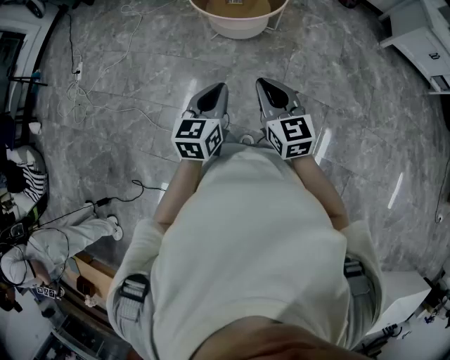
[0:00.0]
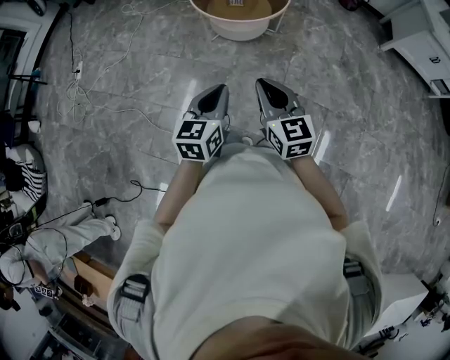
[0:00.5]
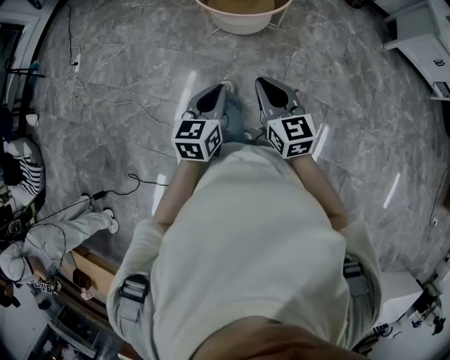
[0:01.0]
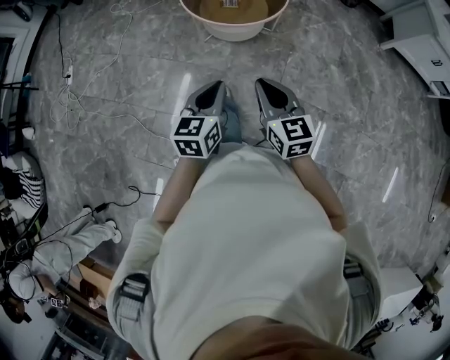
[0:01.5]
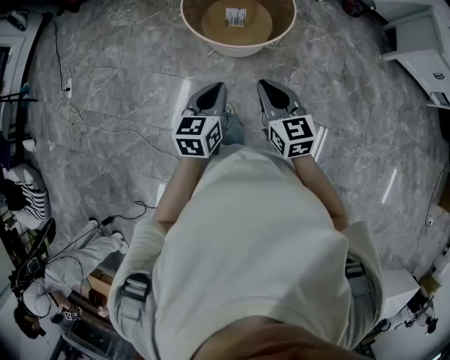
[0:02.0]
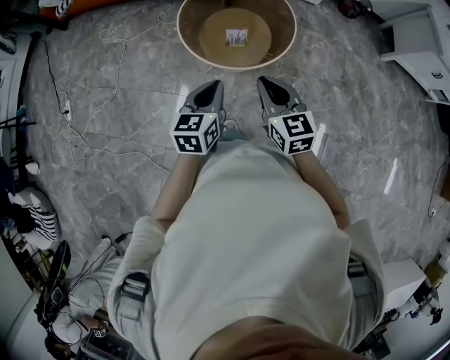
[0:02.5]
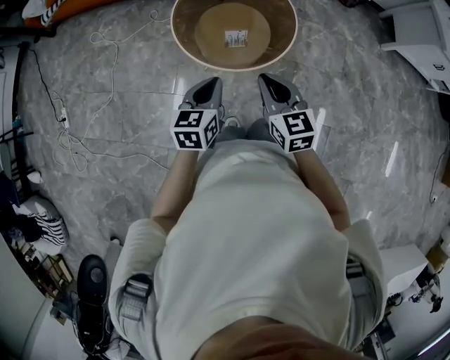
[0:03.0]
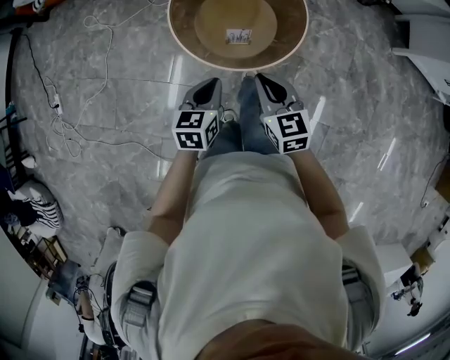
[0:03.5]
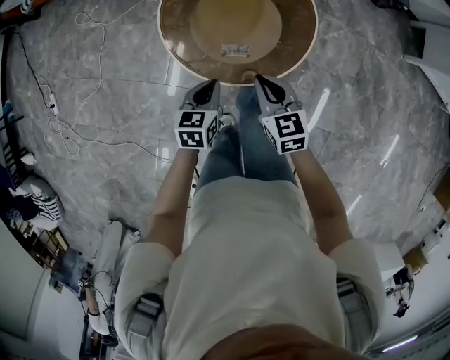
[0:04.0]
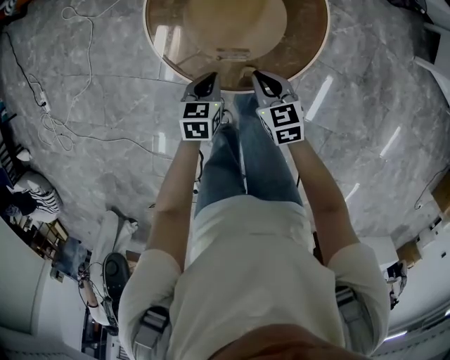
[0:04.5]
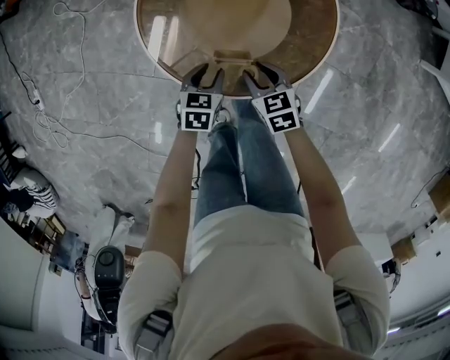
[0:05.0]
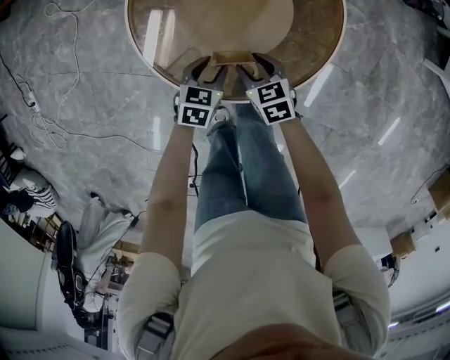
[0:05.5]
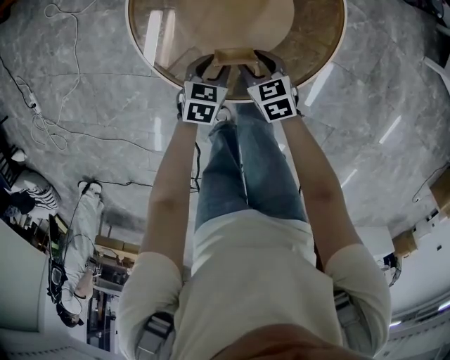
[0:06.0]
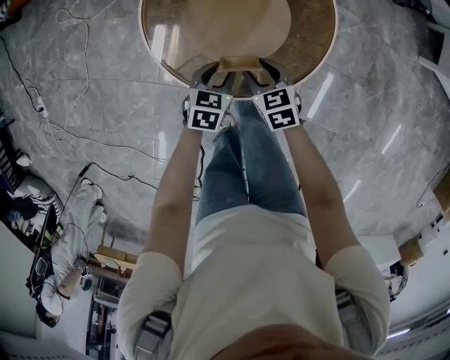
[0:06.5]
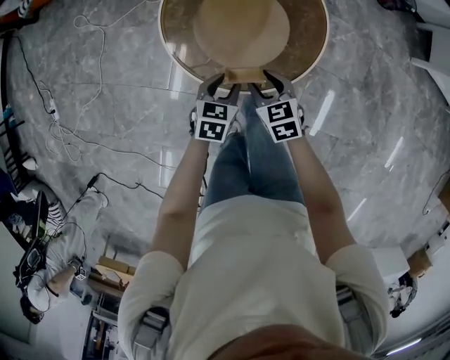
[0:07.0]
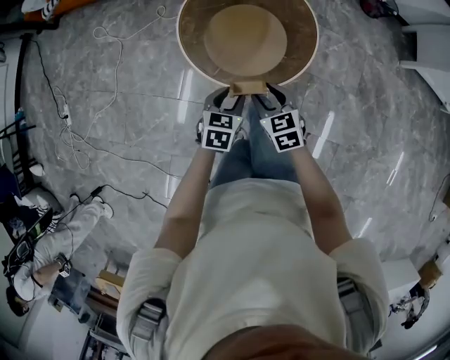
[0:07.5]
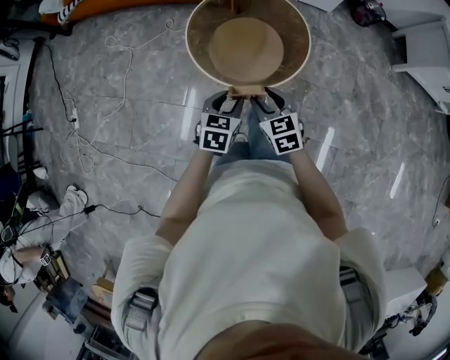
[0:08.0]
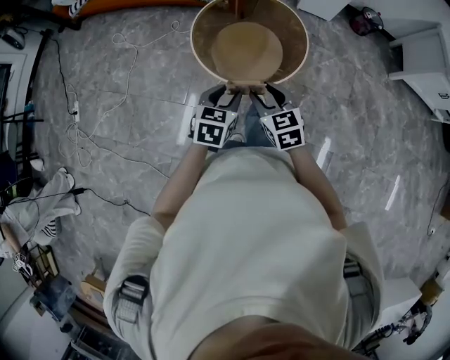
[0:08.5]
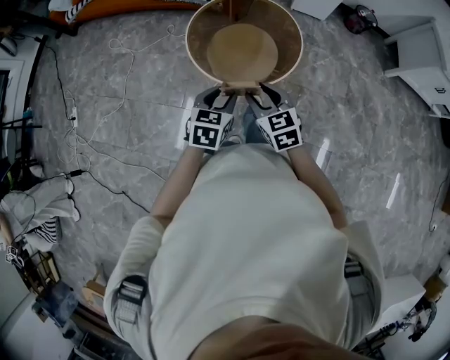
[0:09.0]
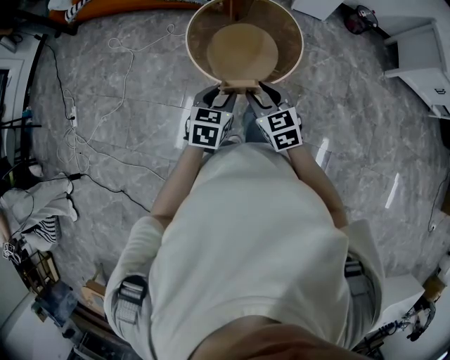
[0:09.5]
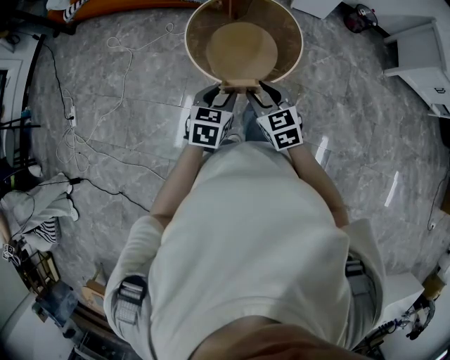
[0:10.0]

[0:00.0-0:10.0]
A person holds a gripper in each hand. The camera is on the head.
0:00.0 to 0:02.0: Both grippers move forward, some 25 cm.
0:02.0 to 0:04.0: The grippers both shift forward and downward by roughly 35 cm.
0:04.0 to 0:06.0: The two grippers go some 20 cm downward. The left gripper opens. Meanwhile the right gripper opens its fingers.
0:06.0 to 0:08.0: Both grippers move upward and backward, some 35 cm. The right gripper rotates roughly 20 degrees.
0:08.0 to 0:10.0: Both grippers move upward, some 5 cm.

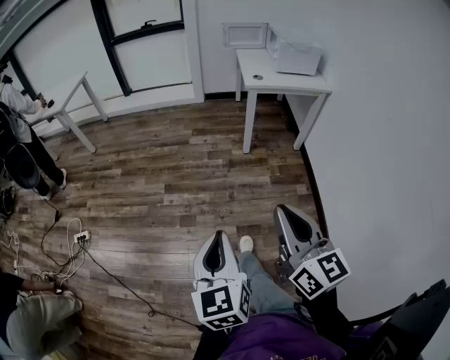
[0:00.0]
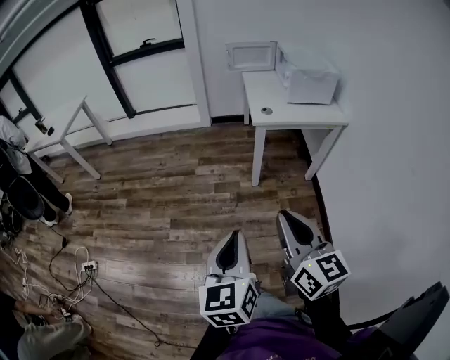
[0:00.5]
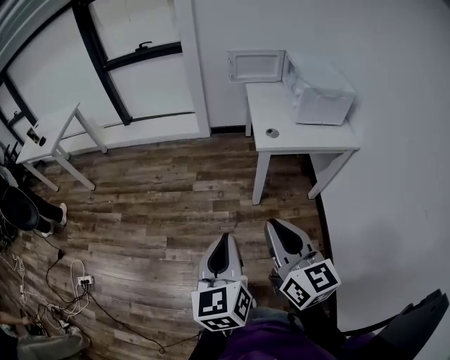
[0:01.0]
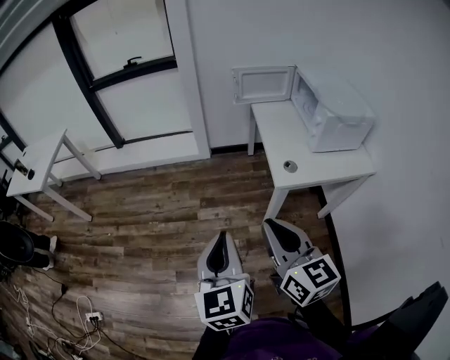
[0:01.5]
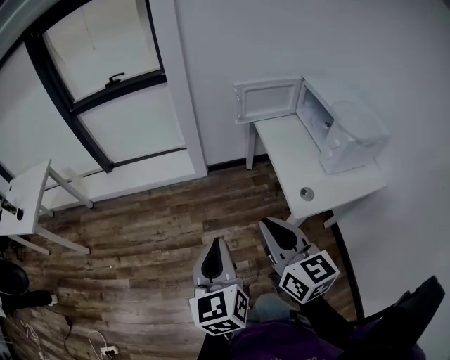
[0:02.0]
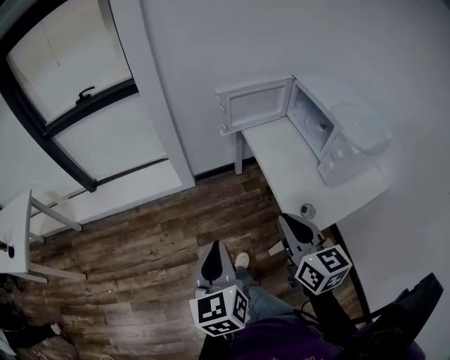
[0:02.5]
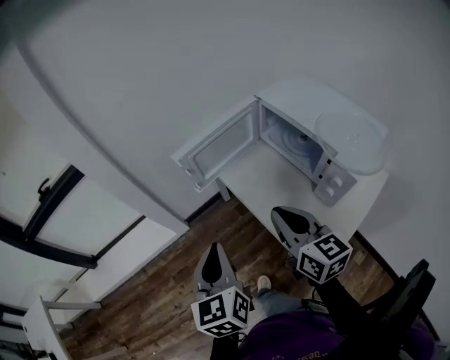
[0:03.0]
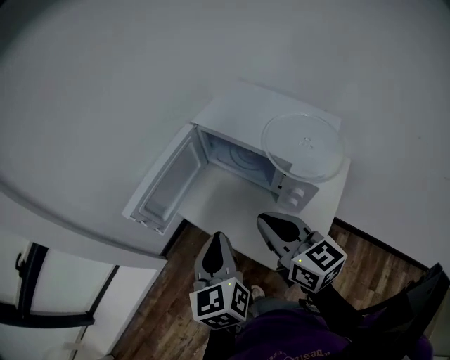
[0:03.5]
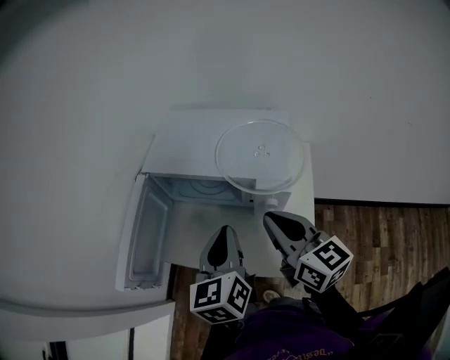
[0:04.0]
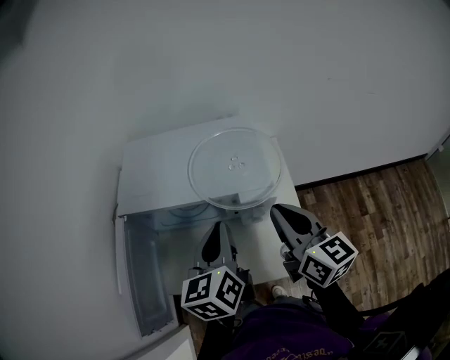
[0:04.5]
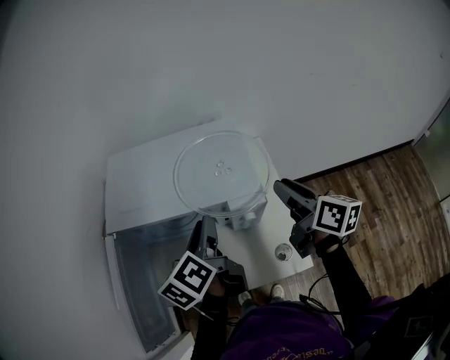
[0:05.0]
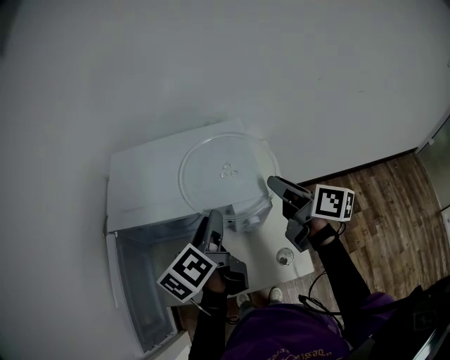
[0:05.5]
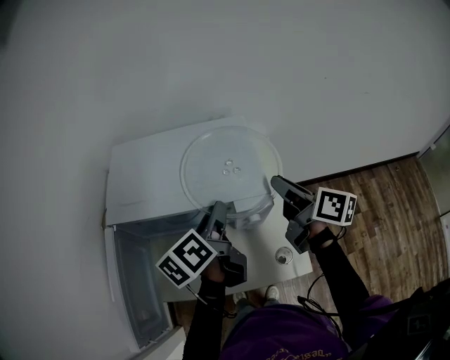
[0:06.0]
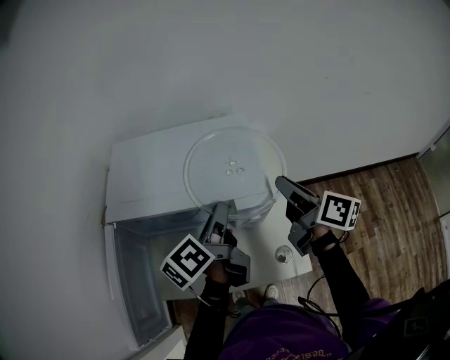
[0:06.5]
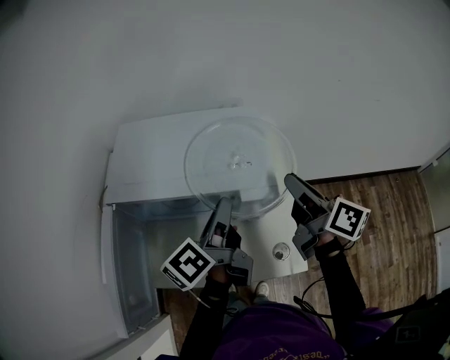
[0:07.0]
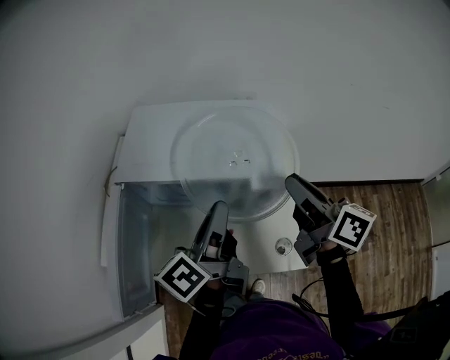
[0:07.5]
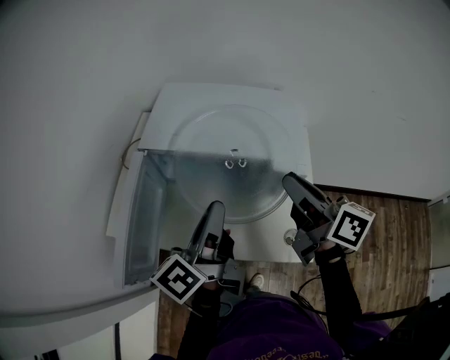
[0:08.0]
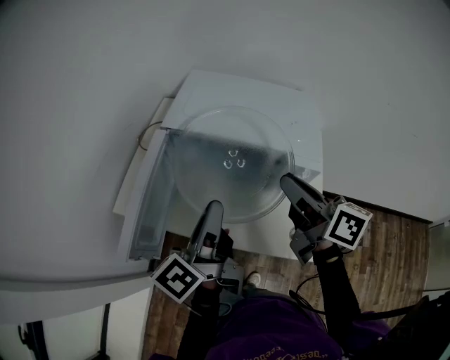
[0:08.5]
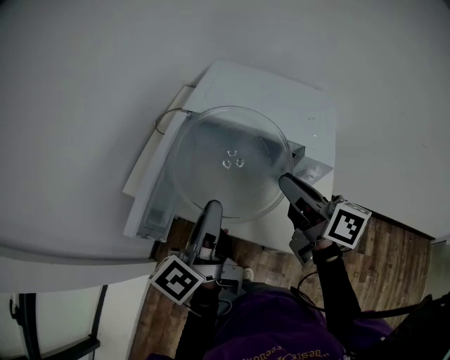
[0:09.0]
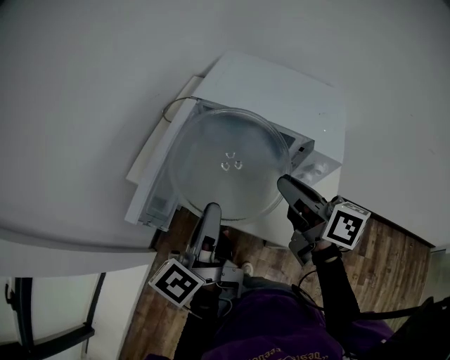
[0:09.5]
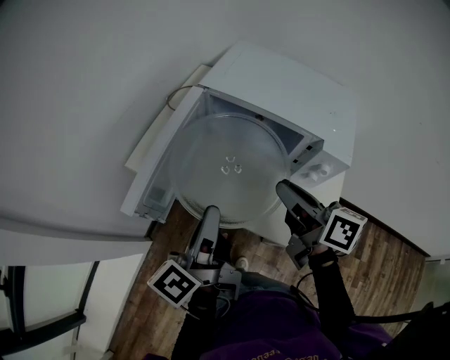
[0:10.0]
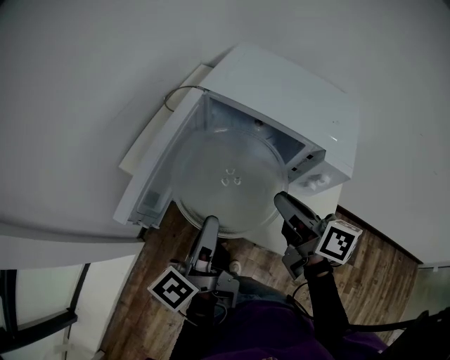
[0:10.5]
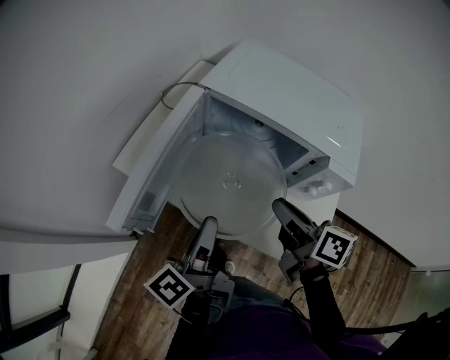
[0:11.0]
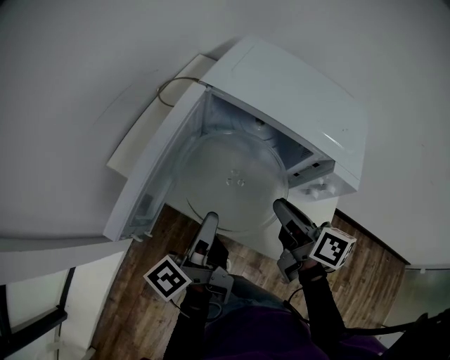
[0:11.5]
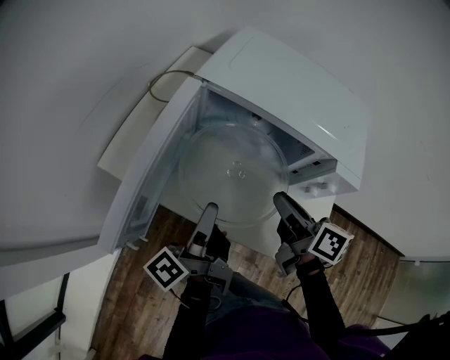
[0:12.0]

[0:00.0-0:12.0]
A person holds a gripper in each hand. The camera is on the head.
0:00.0 to 0:02.0: The two grippers travel together, forward, approximately 80 cm.
0:02.0 to 0:04.0: The pair of grippers is taken approximately 50 cm. The right gripper changes its angle by some 60 degrees, while the left gripper turns by about 70 degrees.
0:04.0 to 0:06.0: The left gripper travels forward by some 15 cm, swivels some 40 degrees, and opens its fingers. Meanwhile the right gripper travels forward and to the right by approximately 15 cm, and turns by about 40 degrees.
0:06.0 to 0:08.0: The right gripper travels to the left, backward and upward by some 15 cm, and swivels approximately 20 degrees. Meanwhile the left gripper is displaced backward and to the left by about 15 cm, and turns by about 30 degrees.
0:08.0 to 0:10.0: The right gripper moves to the left and downward, approximately 15 cm, and changes its angle by about 20 degrees; the left gripper is displaced to the left, backward and downward by some 15 cm, and swivels roughly 20 degrees.
0:10.0 to 0:12.0: The right gripper is displaced downward by about 10 cm; the left gripper goes about 10 cm downward and forward, and turns by approximately 20 degrees.

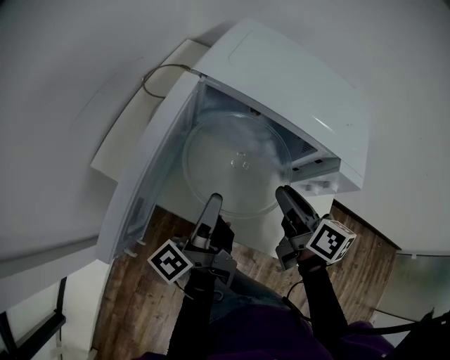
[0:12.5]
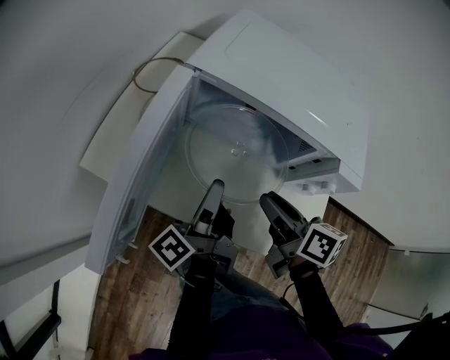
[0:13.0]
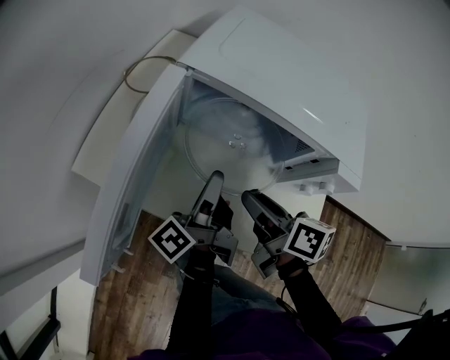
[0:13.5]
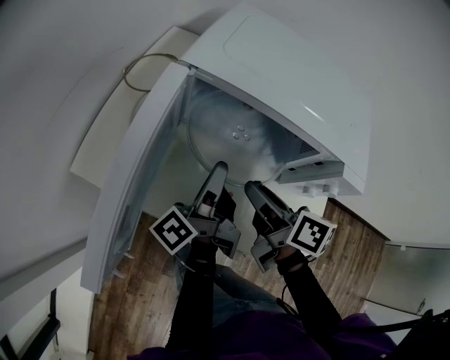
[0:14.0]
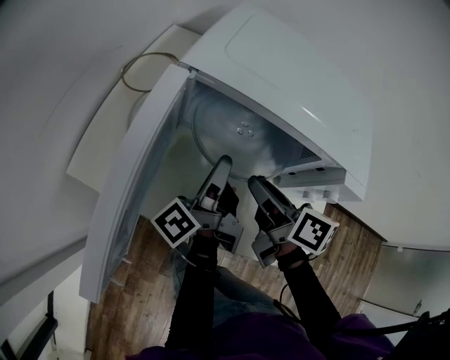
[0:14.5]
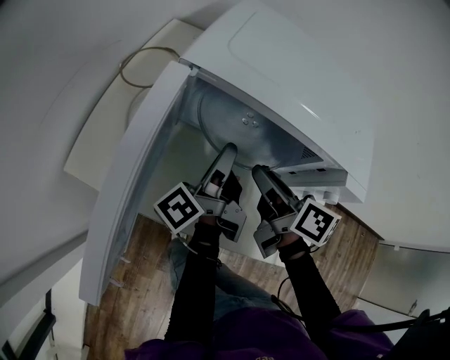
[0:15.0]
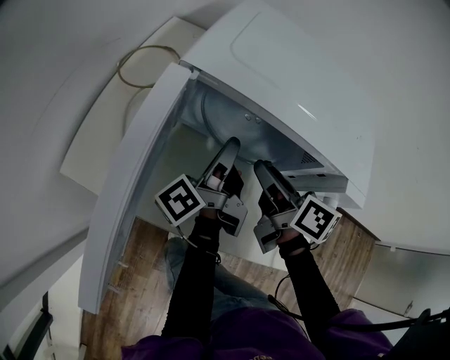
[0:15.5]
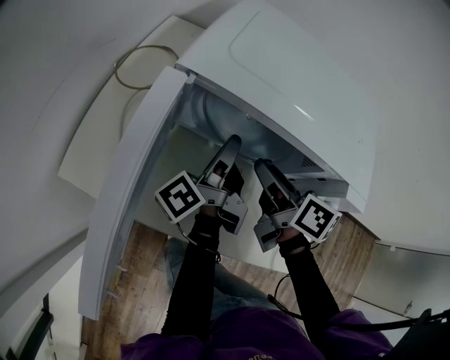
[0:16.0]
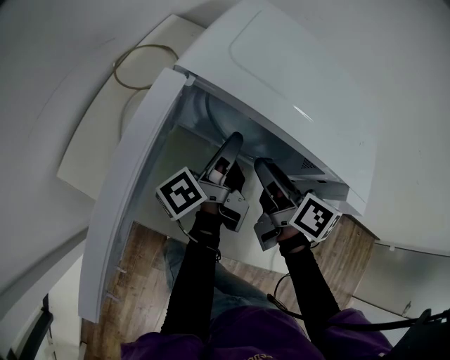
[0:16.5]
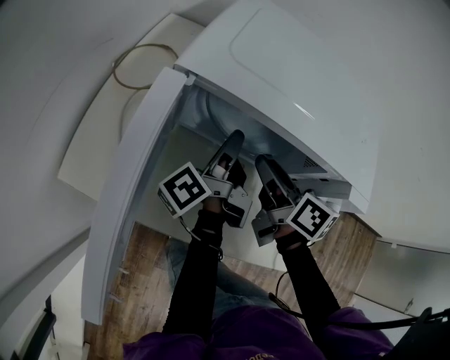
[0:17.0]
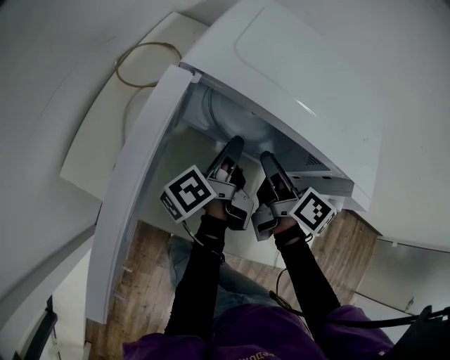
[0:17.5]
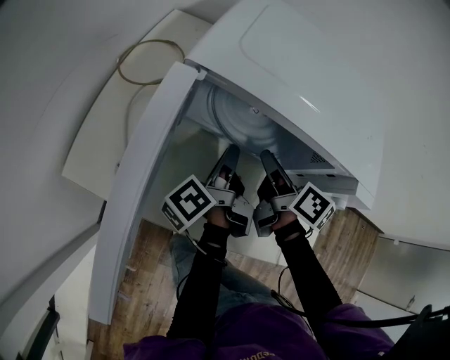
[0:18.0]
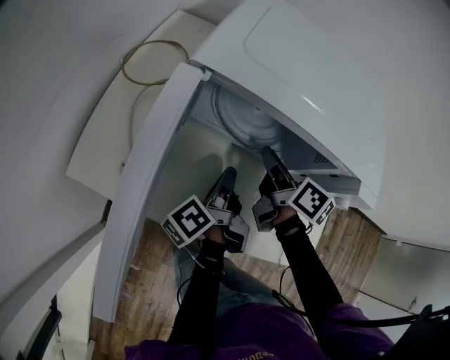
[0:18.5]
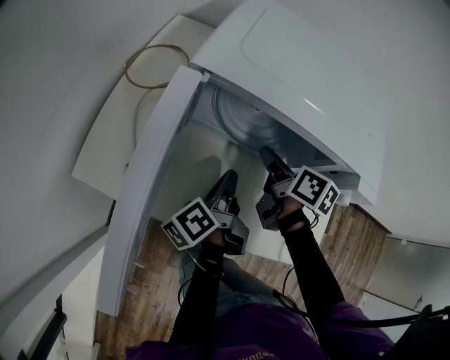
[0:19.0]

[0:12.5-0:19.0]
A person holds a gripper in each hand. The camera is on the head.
0:12.5 to 0:14.5: The left gripper heads forward, covering approximately 10 cm, while the right gripper heads to the left, covering some 5 cm.
0:14.5 to 0:17.0: The two grippers go roughly 10 cm forward.
0:17.0 to 0:19.0: The left gripper shifts approximately 10 cm backward and downward, and closes its fingers. Meanwhile the right gripper travels downward by roughly 5 cm.
